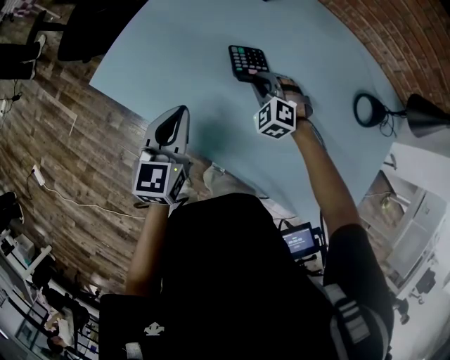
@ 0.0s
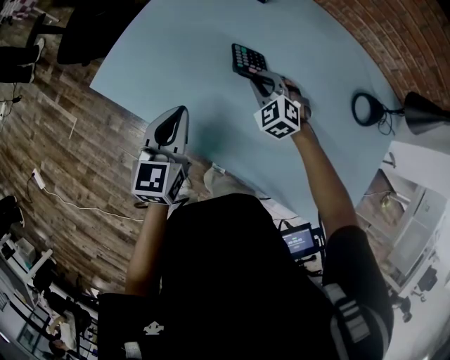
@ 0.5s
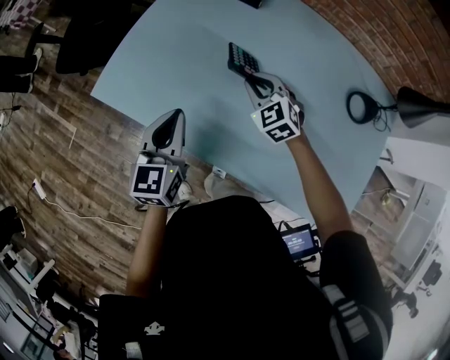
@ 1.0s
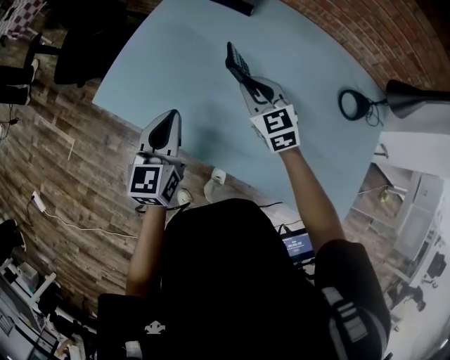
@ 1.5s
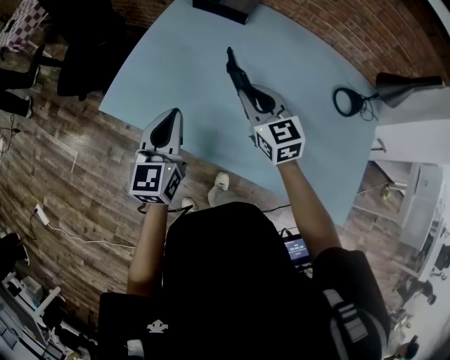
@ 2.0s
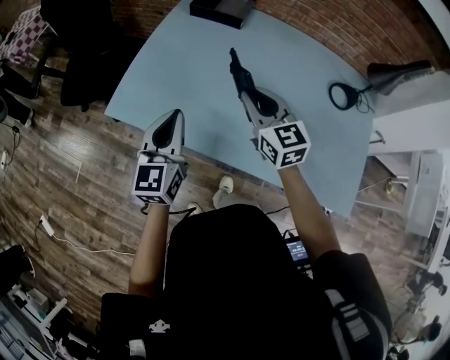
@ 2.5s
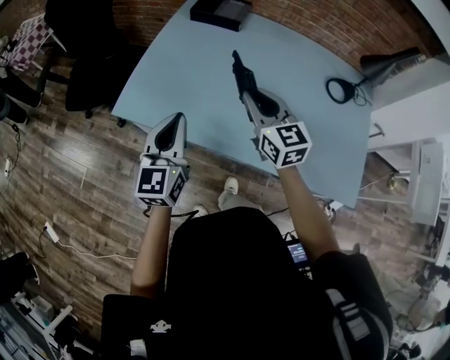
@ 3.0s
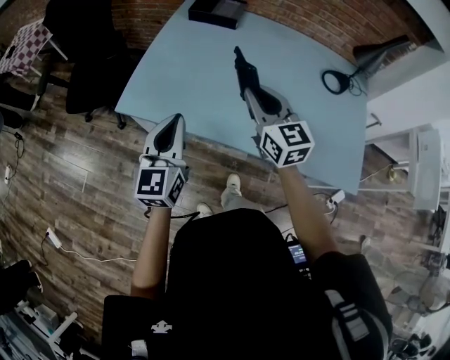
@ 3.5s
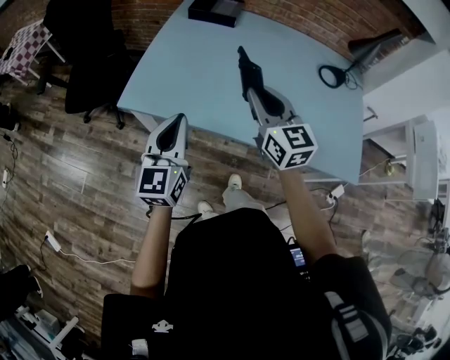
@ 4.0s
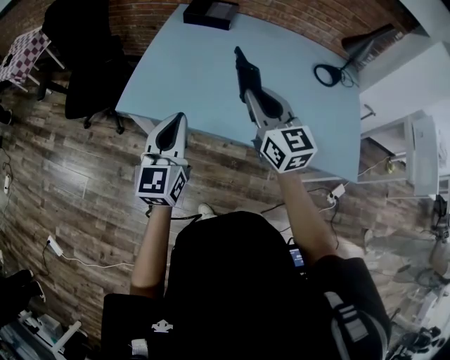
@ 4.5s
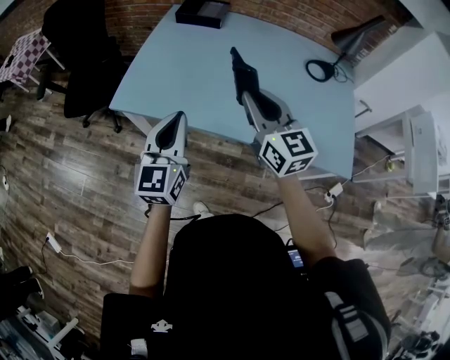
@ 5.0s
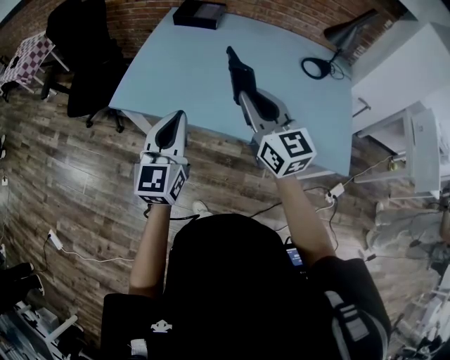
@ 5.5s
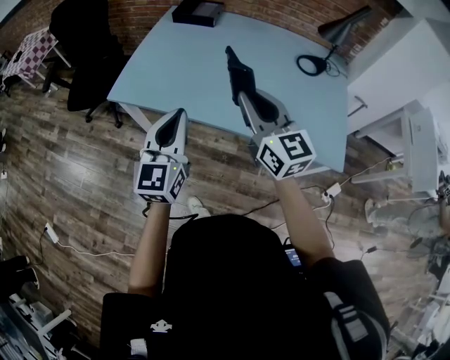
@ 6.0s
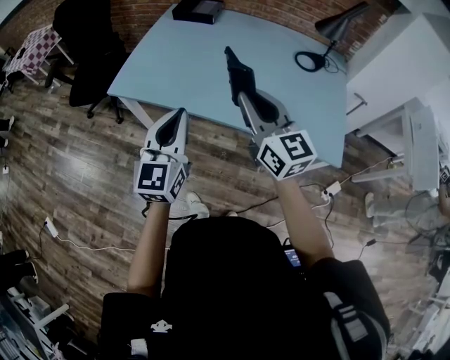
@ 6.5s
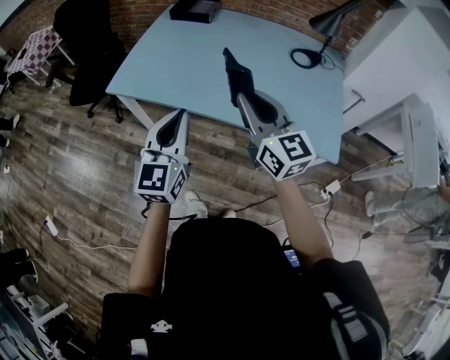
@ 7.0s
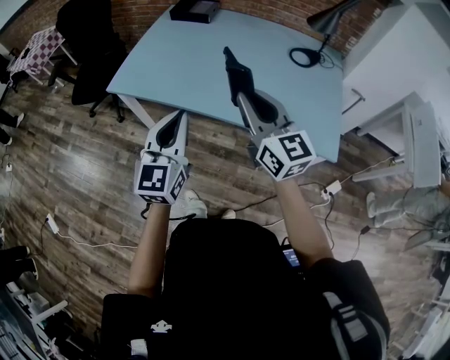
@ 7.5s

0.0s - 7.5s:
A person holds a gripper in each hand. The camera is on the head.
0.0s - 2.0s: The right gripper goes about 20 cm upward, and twists roughly 50 degrees clockwise, seen from behind; the left gripper is displaced upward by about 5 cm.
2.0s - 4.0s: The right gripper is displaced backward and upward by roughly 20 cm, and rotates roughly 20 degrees, while the left gripper shifts roughly 15 cm backward and to the left.
4.0s - 5.5s: The left gripper heads to the right and backward, covering approximately 10 cm; the right gripper shifts approximately 10 cm backward and to the right.
5.5s - 7.5s: Both grippers travel together backward and to the right, approximately 15 cm.

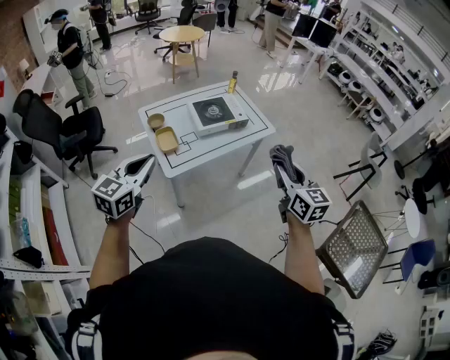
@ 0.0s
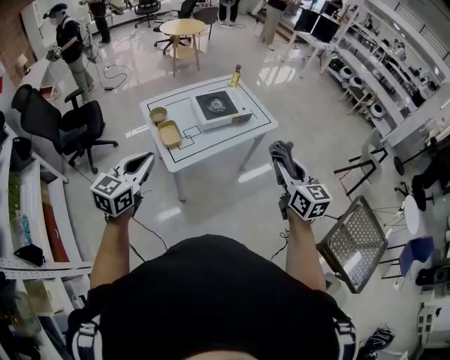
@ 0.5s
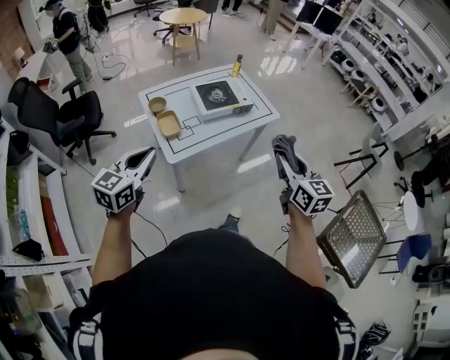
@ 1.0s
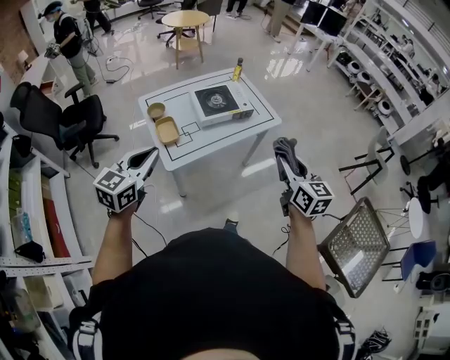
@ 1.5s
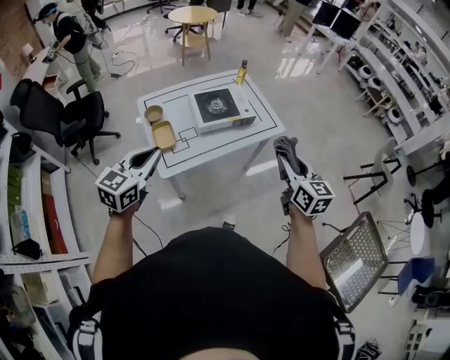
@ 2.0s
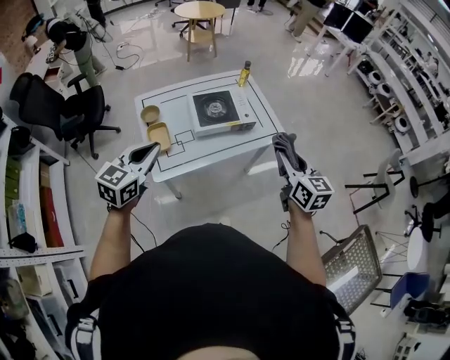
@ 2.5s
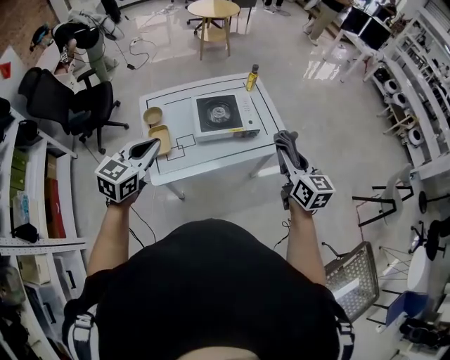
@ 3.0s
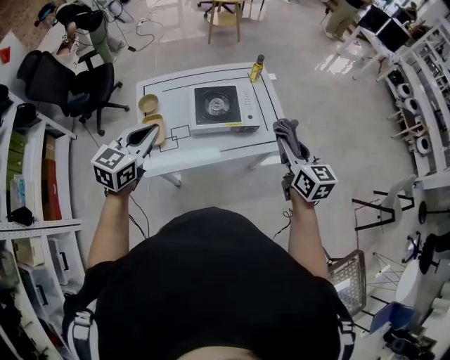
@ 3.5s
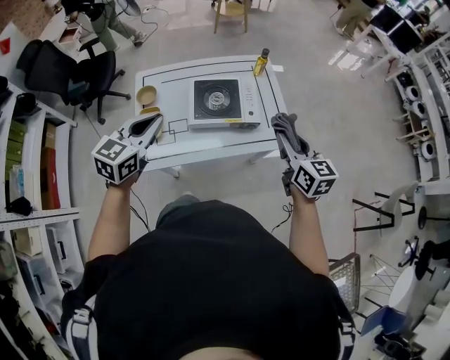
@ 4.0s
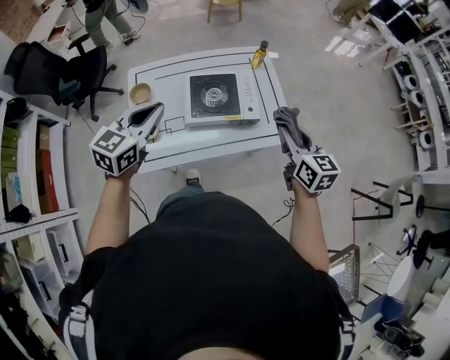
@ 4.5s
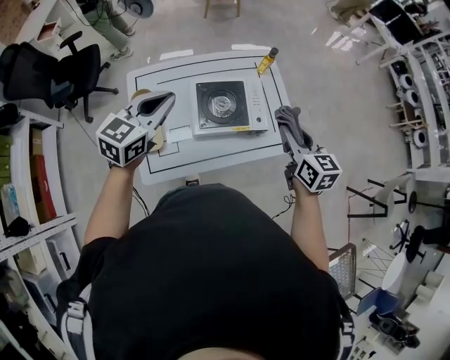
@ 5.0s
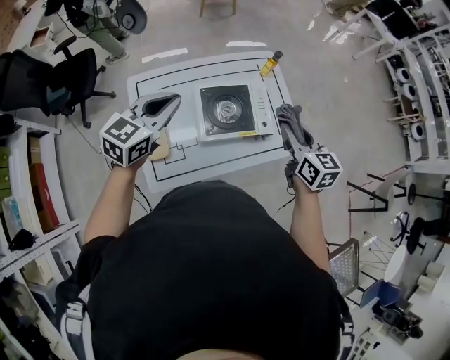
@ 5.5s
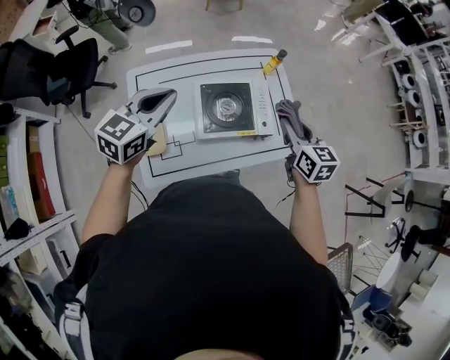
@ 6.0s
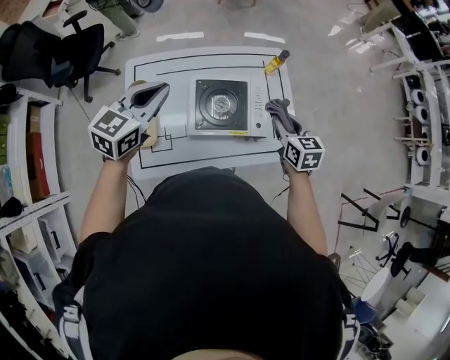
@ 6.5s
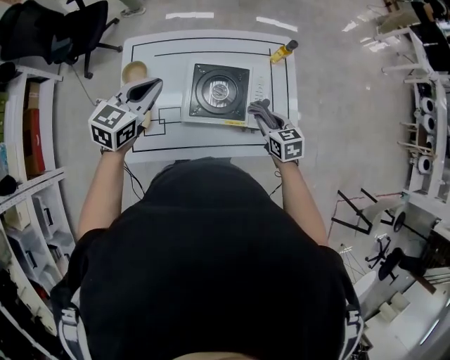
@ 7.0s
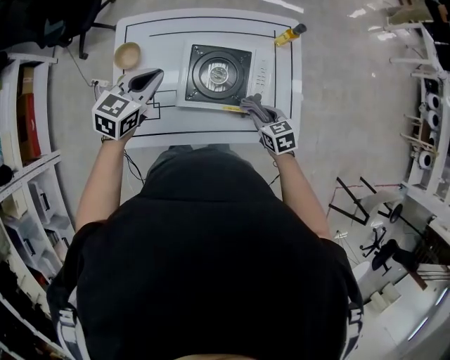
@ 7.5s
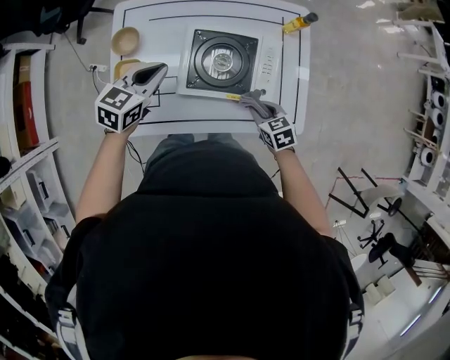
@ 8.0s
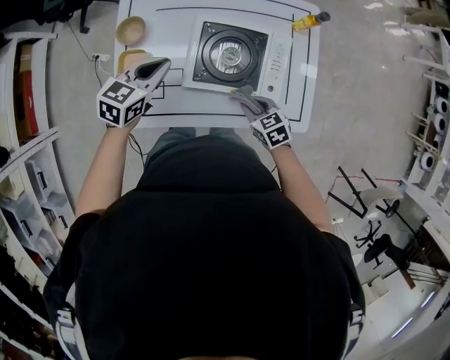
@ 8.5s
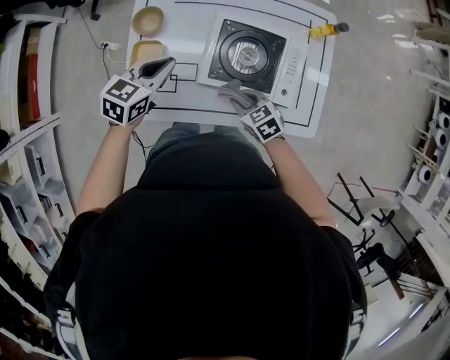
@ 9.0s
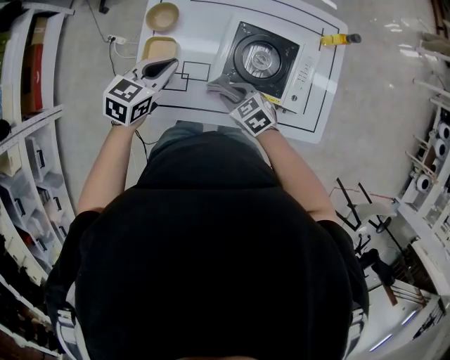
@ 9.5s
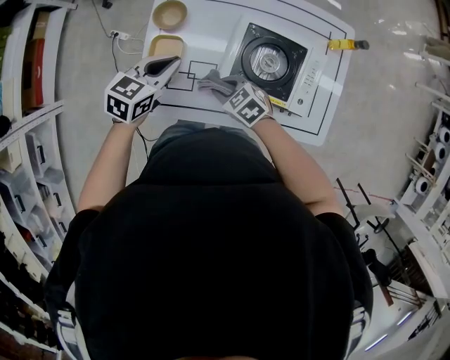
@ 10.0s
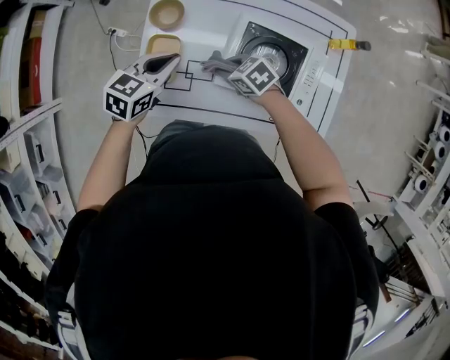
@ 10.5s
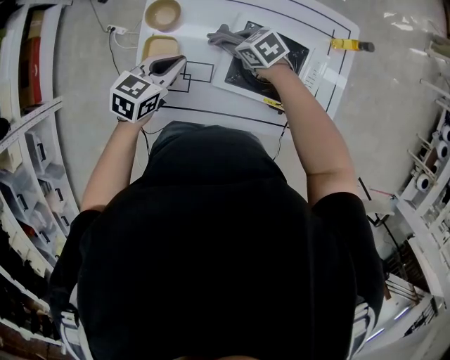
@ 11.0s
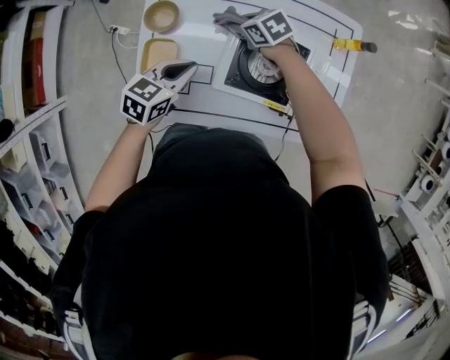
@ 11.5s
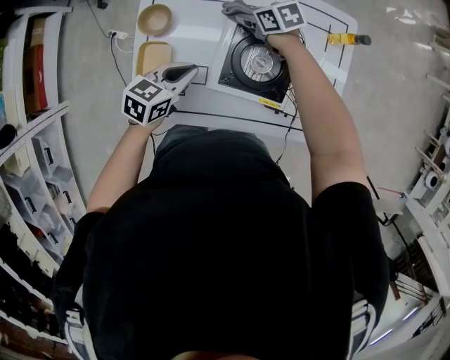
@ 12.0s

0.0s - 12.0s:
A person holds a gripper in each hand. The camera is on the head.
0.0s - 2.0s: Both grippers move forward, roughly 15 cm.
2.0s - 4.0s: The right gripper travels forward by some 30 cm; the left gripper shifts approximately 30 cm forward and to the right.
4.0s - 6.0s: The grippers both shift forward and to the left by about 25 cm.
6.0s - 8.0s: The grippers both shift downward by approximately 25 cm. The left gripper rotates about 20 degrees; the right gripper turns by some 40 degrees.
8.0s - 10.0s: The left gripper shifts roughly 10 cm to the left, while the right gripper travels to the left by roughly 25 cm, and turns by some 30 degrees.
10.0s - 12.0s: The right gripper shifts by about 30 cm, and rotates roughly 20 degrees, while the left gripper moves roughly 10 cm.

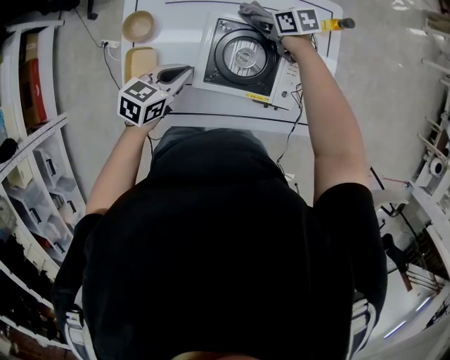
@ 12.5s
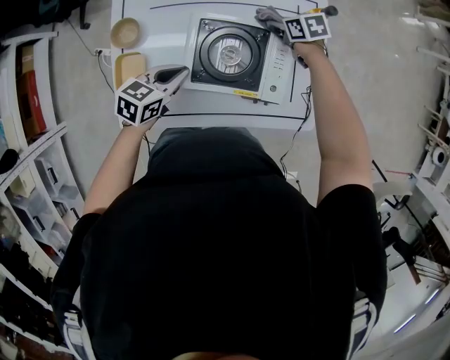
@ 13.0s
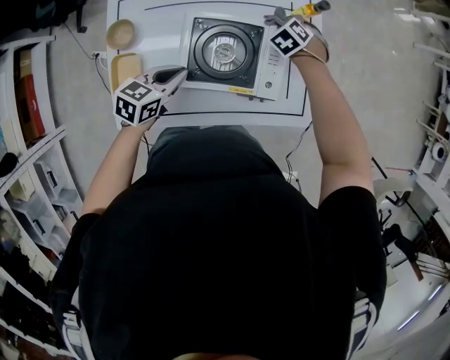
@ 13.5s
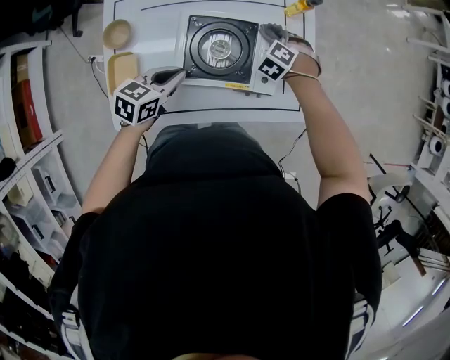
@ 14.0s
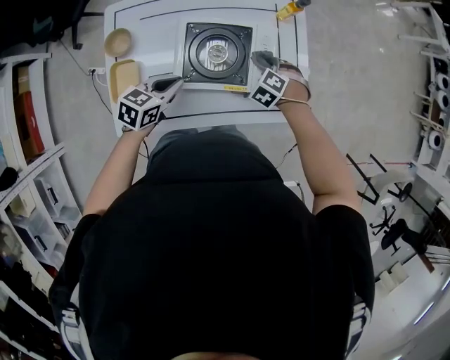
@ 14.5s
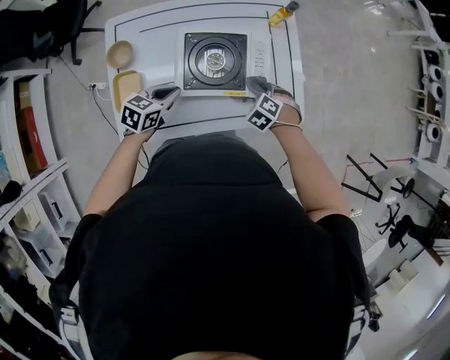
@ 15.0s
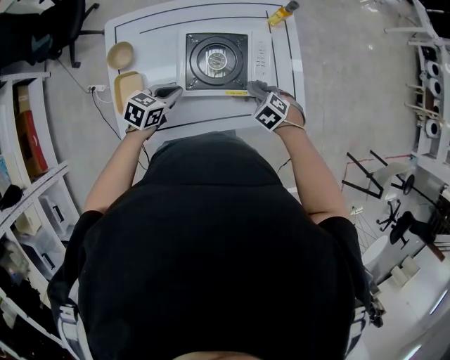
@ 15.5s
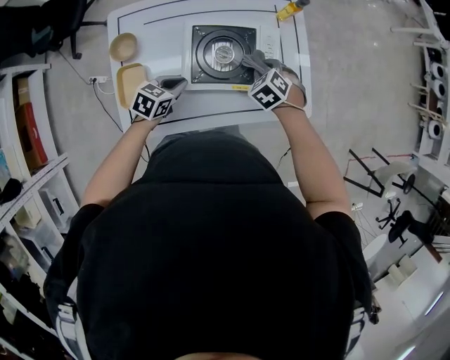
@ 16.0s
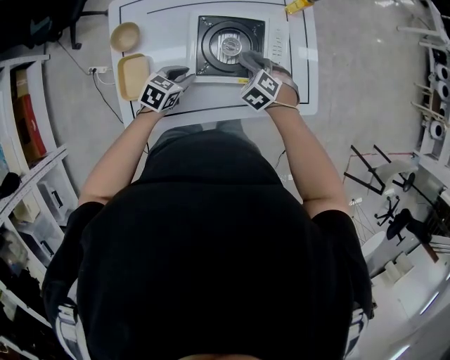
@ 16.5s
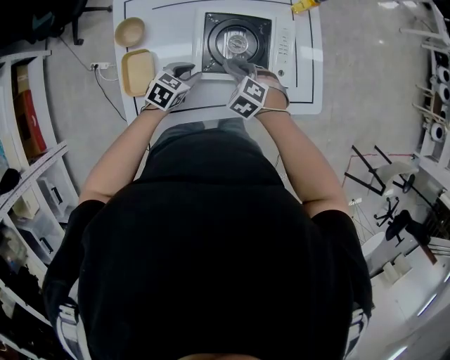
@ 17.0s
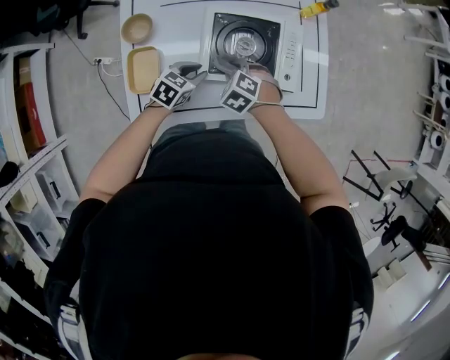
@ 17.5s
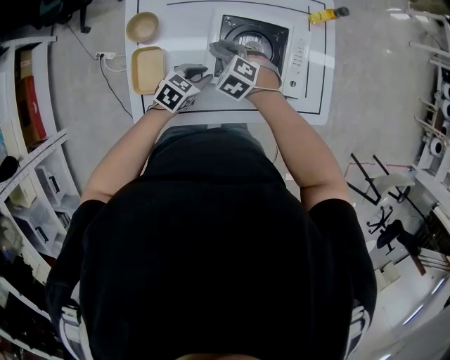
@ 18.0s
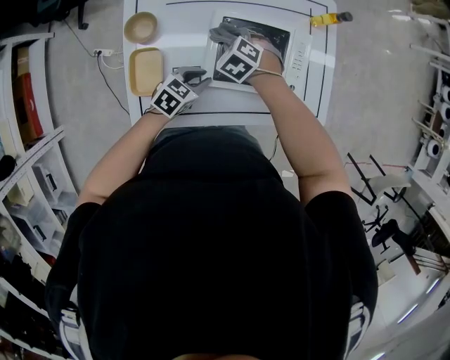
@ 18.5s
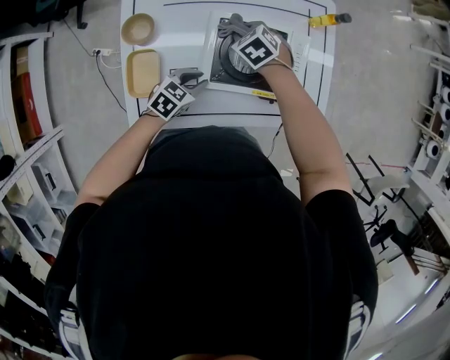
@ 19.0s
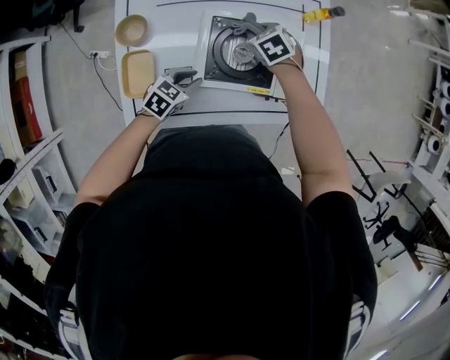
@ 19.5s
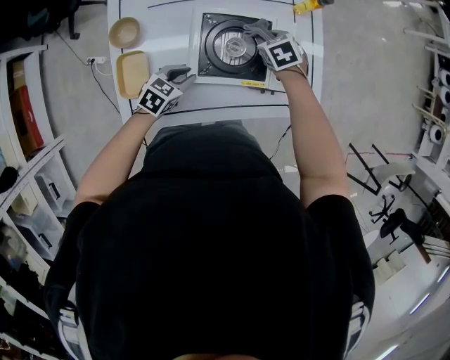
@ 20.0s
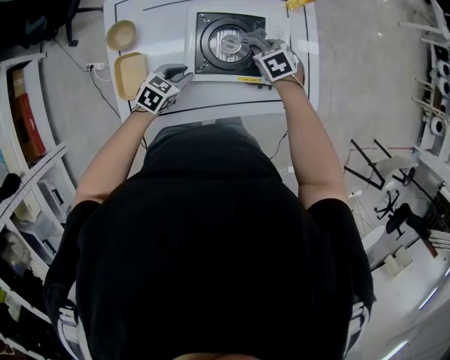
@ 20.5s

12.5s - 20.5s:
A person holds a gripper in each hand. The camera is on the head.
12.5s - 14.5s: The left gripper moves about 5 cm; the right gripper moves some 25 cm, and turns by some 70 degrees.
14.5s - 16.5s: The right gripper changes place by roughly 10 cm. The left gripper moves downward, about 10 cm, and opens its fingers.
16.5s - 18.5s: The right gripper is displaced to the left by roughly 20 cm.
18.5s - 20.5s: The right gripper shifts some 20 cm to the right, and changes its angle by about 30 degrees.
